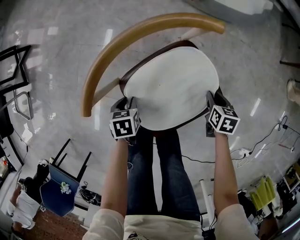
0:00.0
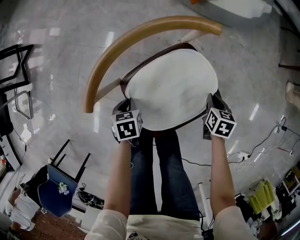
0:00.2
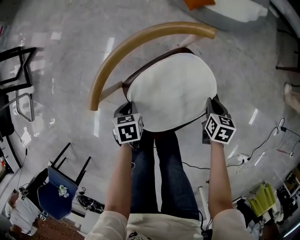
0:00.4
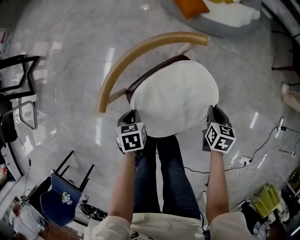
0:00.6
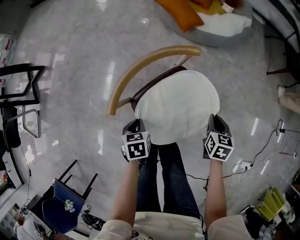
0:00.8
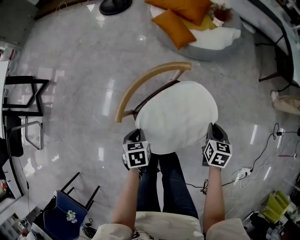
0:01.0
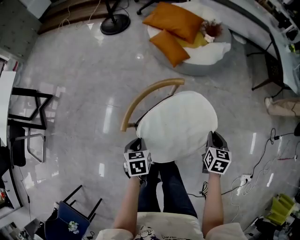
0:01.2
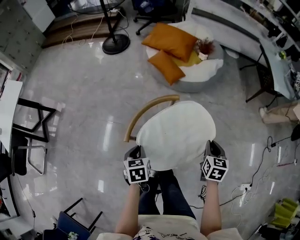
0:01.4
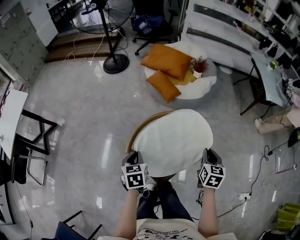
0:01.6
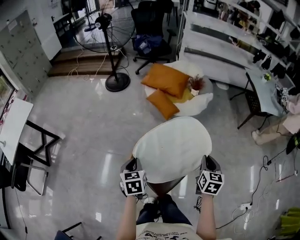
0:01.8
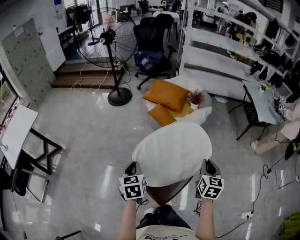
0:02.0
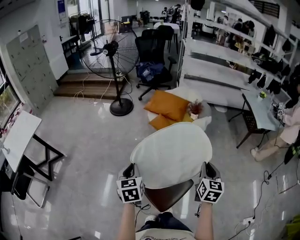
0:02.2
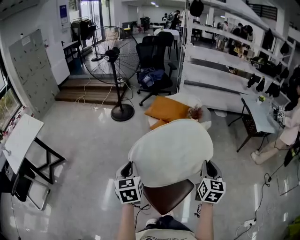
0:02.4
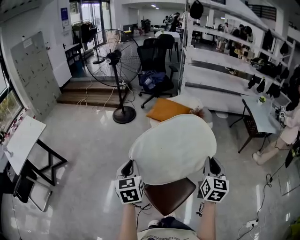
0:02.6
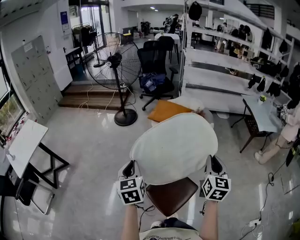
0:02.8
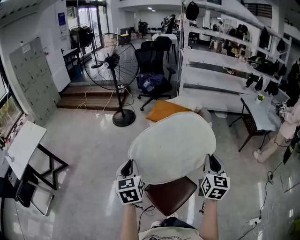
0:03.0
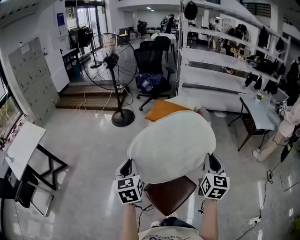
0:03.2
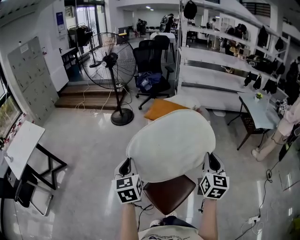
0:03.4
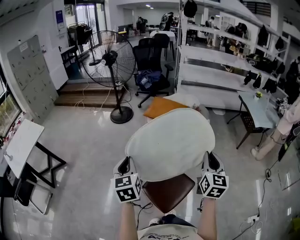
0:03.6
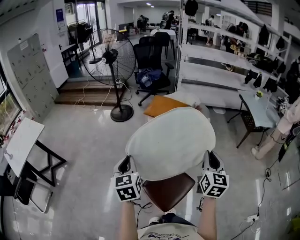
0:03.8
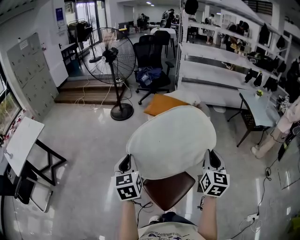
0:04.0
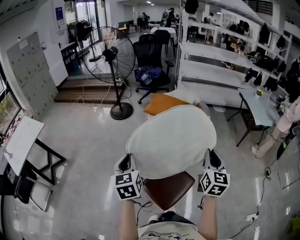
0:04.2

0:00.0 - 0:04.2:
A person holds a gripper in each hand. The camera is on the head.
0:00.0 - 0:01.4: Both grippers move upward, approximately 40 cm. The right gripper changes its angle by roughly 30 degrees. The left gripper turns by approximately 20 degrees, and closes its fingers.
0:01.4 - 0:02.8: Both grippers travel together upward, about 35 cm. The left gripper angles its fingers upward, by approximately 30 degrees. The right gripper points its fingers approximately 40 degrees further upward.
0:02.8 - 0:04.2: Neither gripper changes place.

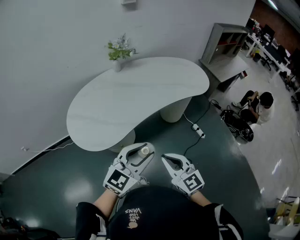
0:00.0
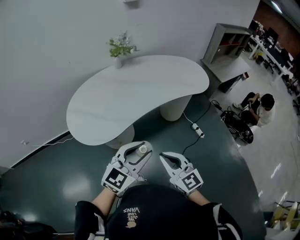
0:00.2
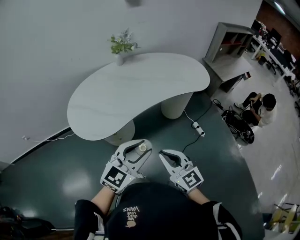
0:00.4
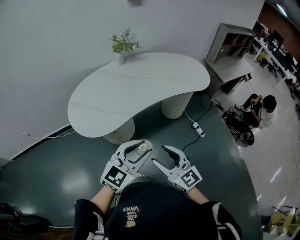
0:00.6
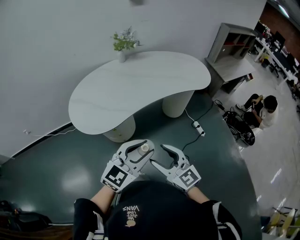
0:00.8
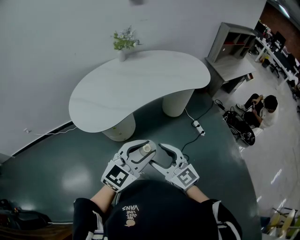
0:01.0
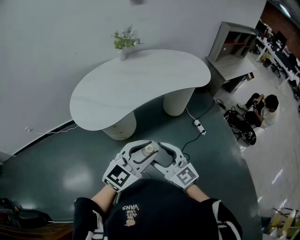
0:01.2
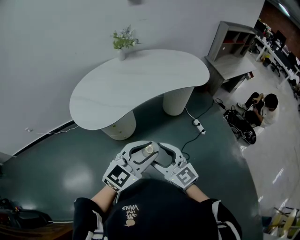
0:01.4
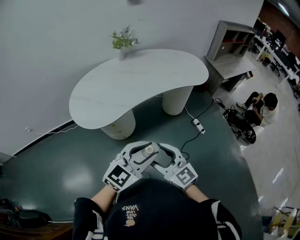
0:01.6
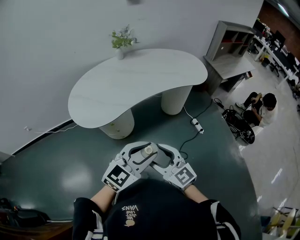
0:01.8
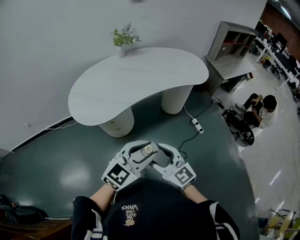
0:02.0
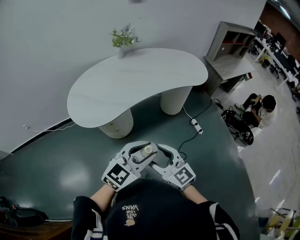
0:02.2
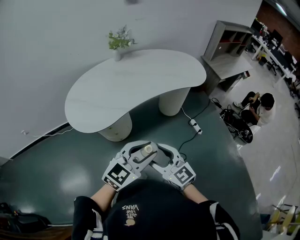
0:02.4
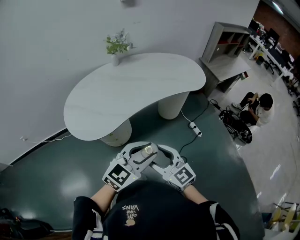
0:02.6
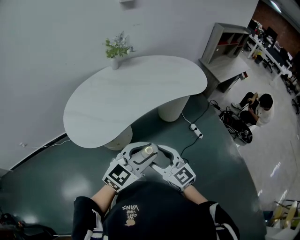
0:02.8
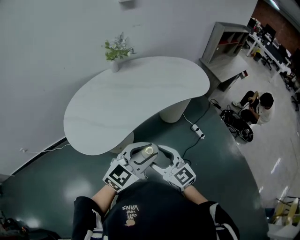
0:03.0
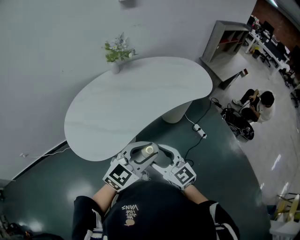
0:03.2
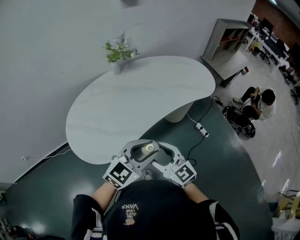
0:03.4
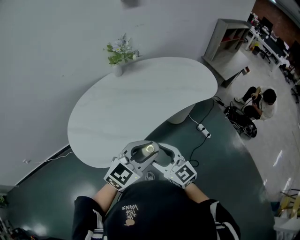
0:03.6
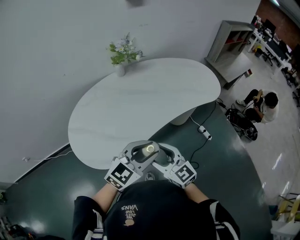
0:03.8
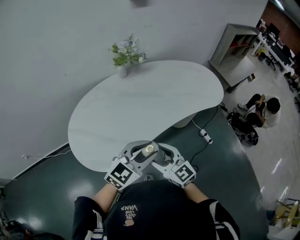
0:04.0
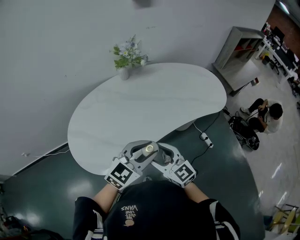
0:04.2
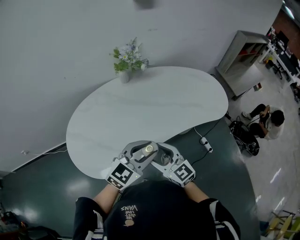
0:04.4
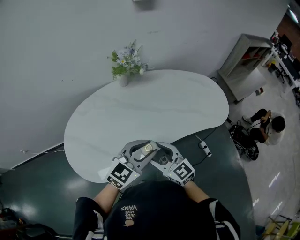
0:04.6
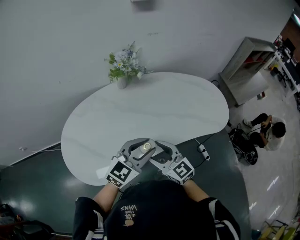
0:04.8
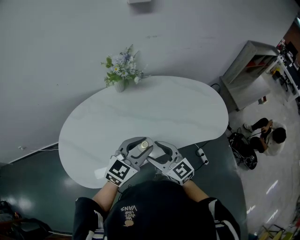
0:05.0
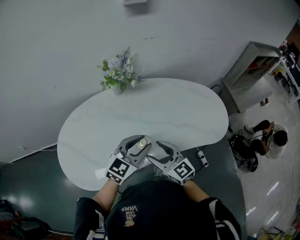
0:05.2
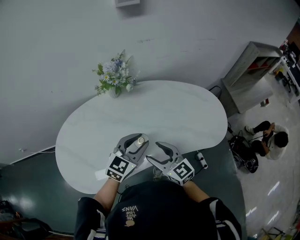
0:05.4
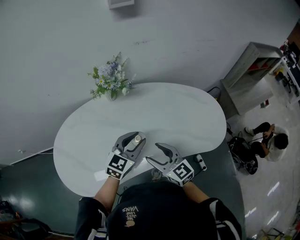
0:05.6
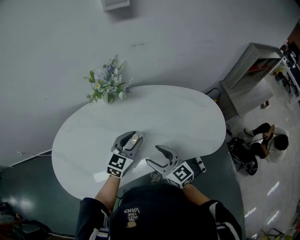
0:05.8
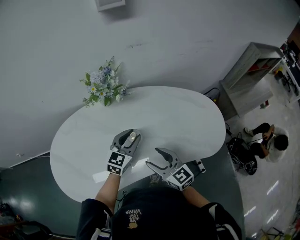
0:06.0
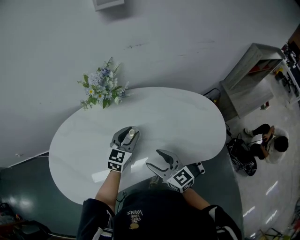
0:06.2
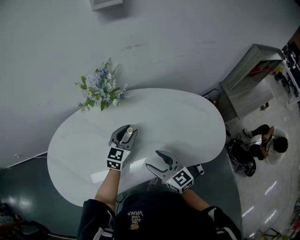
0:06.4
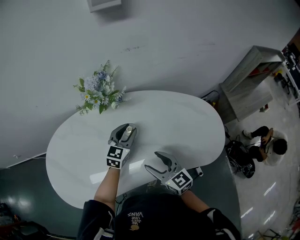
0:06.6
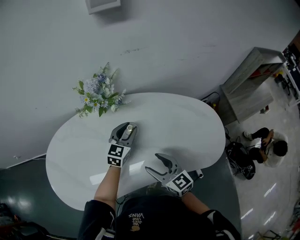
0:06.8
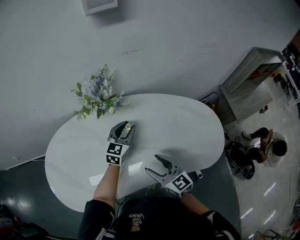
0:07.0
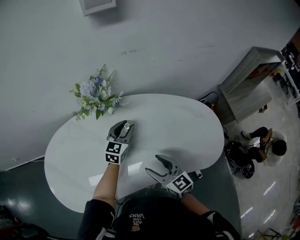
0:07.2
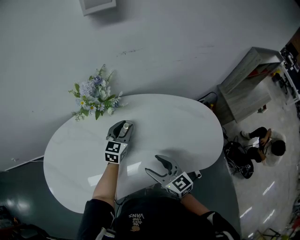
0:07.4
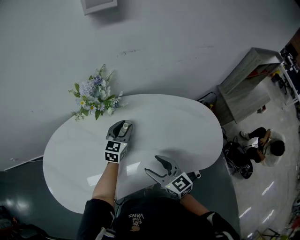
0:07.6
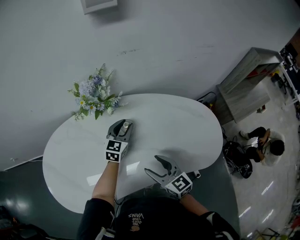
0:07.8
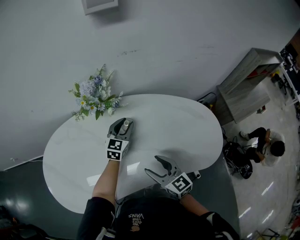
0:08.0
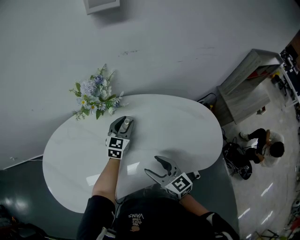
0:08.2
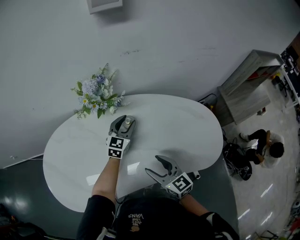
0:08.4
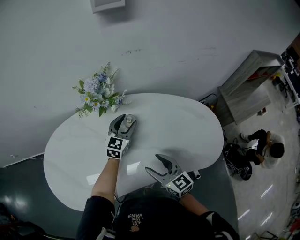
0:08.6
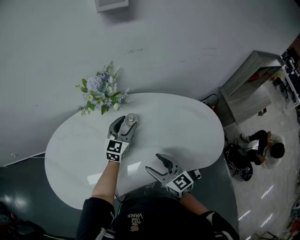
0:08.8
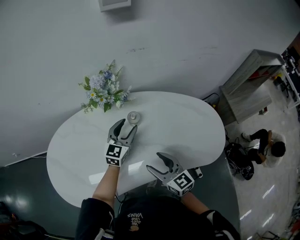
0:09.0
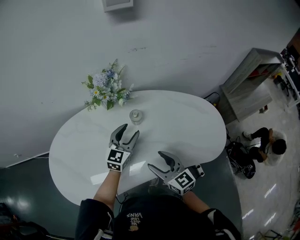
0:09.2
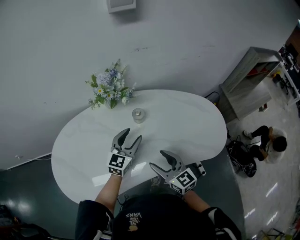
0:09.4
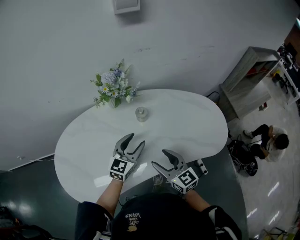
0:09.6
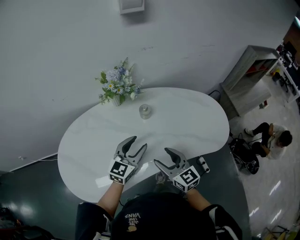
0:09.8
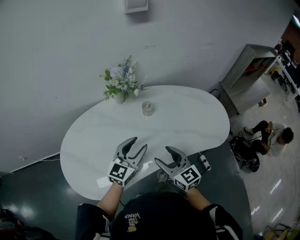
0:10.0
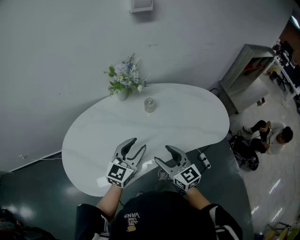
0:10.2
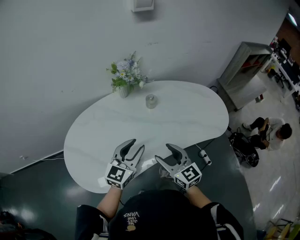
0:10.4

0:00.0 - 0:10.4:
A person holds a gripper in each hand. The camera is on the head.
0:00.0 - 0:01.4: The right gripper shifts approximately 10 cm backward, and opens; the left gripper goes about 15 cm backward and to the right.
0:01.4 - 0:03.0: The grippers both shift forward and to the left by approximately 15 cm.
0:03.0 - 0:04.4: Both grippers travel together forward, about 20 cm.
0:04.4 - 0:06.0: The left gripper travels forward by roughly 30 cm, and swivels about 30 degrees. The right gripper heads forward and to the right, covering about 25 cm.
0:06.0 - 0:07.4: The left gripper goes some 15 cm forward; the right gripper moves about 5 cm.
0:07.4 - 0:09.0: The left gripper ends up approximately 5 cm from where it was.
0:09.0 - 0:10.4: The left gripper moves backward and to the left, roughly 25 cm, while the right gripper travels backward, to the left and upward by some 15 cm.

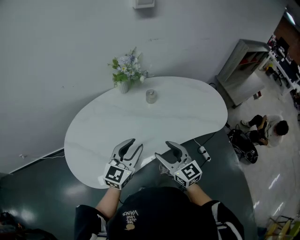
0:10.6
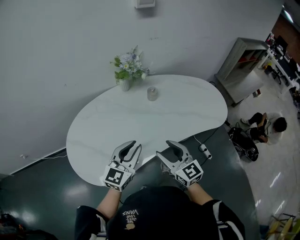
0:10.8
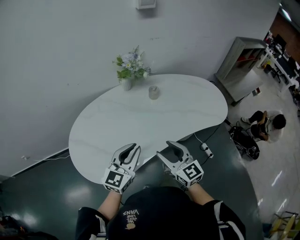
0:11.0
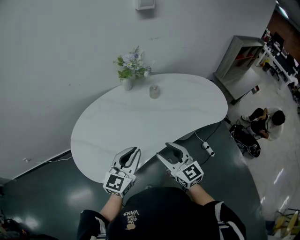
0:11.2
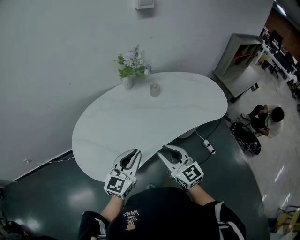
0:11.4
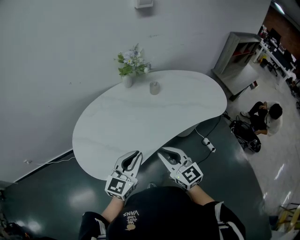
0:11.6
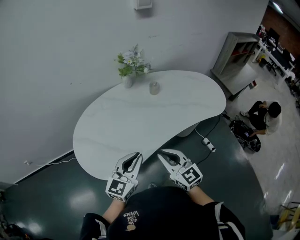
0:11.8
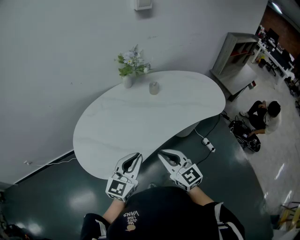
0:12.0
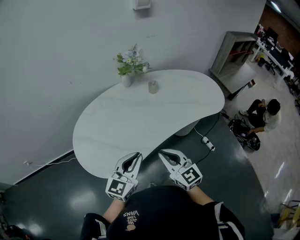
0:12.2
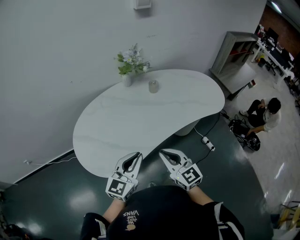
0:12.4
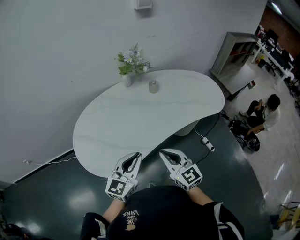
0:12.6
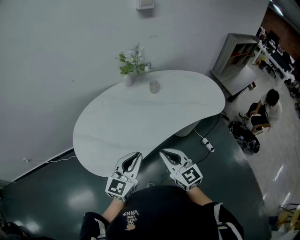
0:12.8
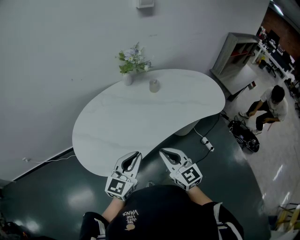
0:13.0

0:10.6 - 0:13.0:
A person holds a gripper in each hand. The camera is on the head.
0:10.6 - 0:11.8: Both grippers move backward and to the left, roughly 15 cm. The right gripper closes its fingers. The left gripper closes up.
0:11.8 - 0:13.0: The grippers stay close to where they were, moving slightly.

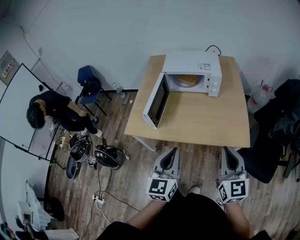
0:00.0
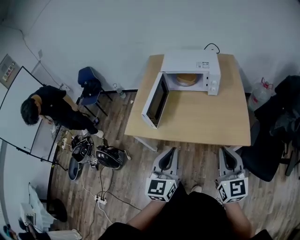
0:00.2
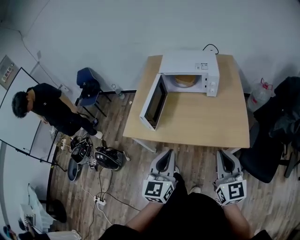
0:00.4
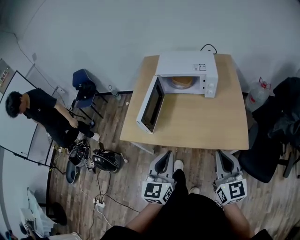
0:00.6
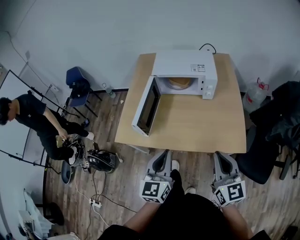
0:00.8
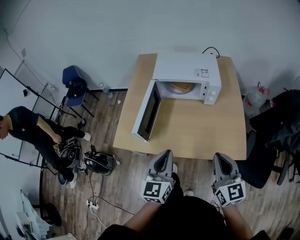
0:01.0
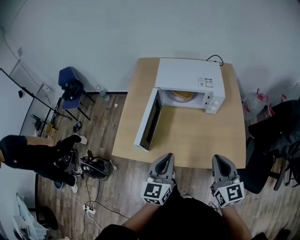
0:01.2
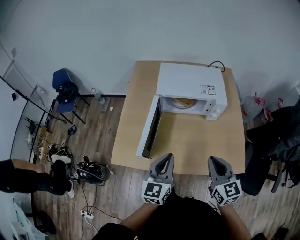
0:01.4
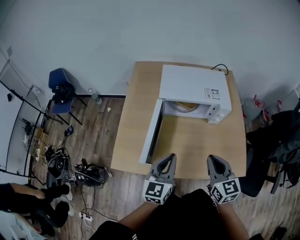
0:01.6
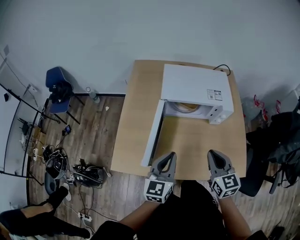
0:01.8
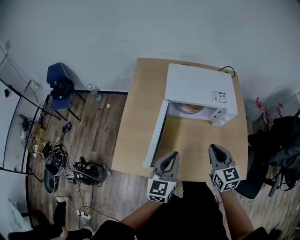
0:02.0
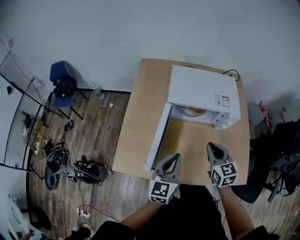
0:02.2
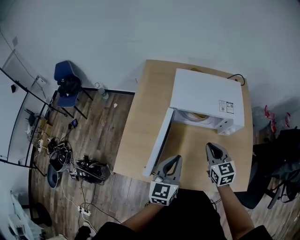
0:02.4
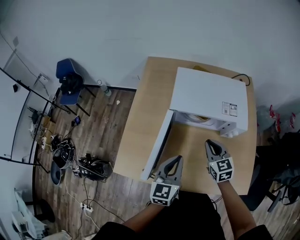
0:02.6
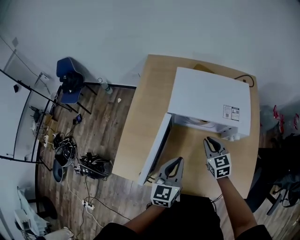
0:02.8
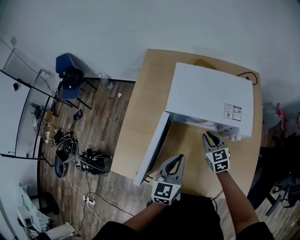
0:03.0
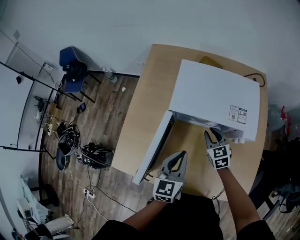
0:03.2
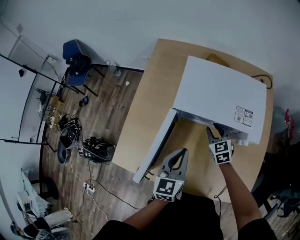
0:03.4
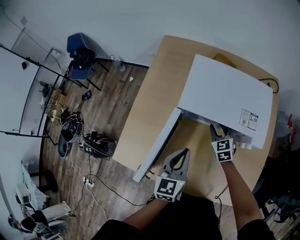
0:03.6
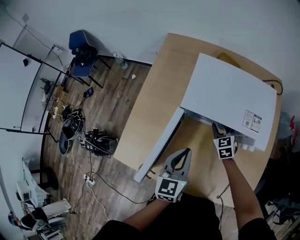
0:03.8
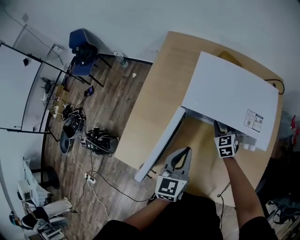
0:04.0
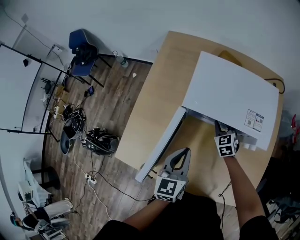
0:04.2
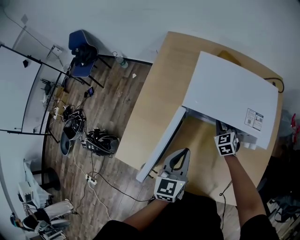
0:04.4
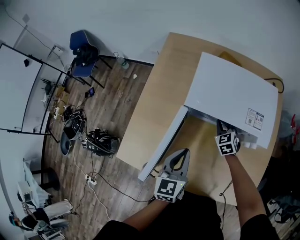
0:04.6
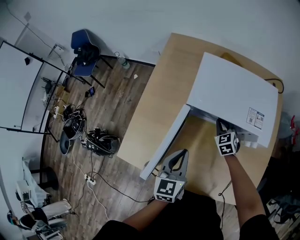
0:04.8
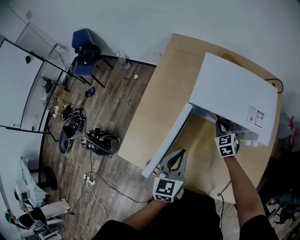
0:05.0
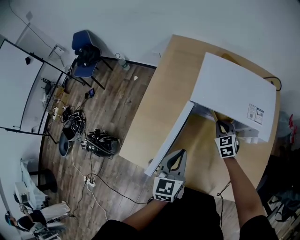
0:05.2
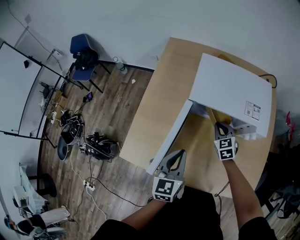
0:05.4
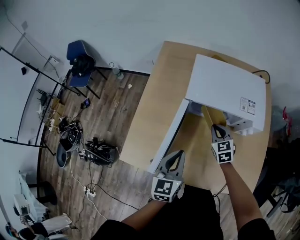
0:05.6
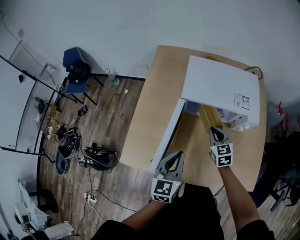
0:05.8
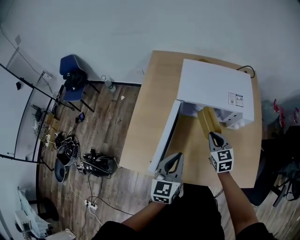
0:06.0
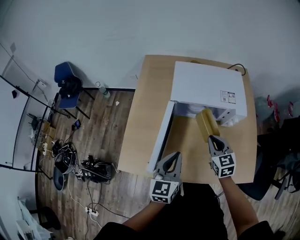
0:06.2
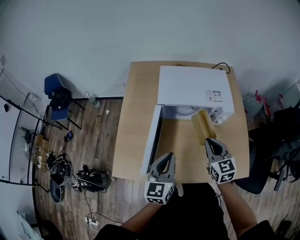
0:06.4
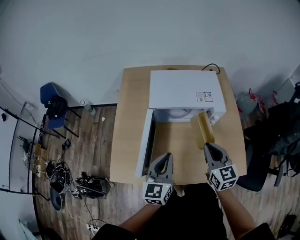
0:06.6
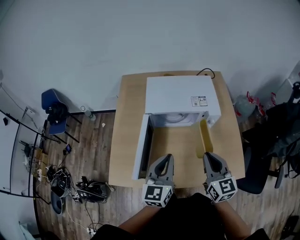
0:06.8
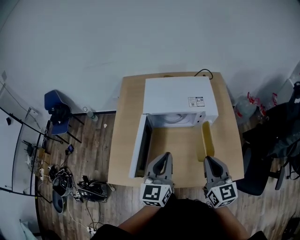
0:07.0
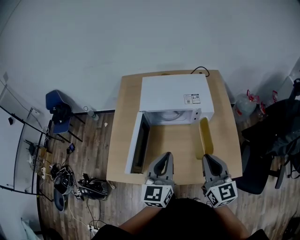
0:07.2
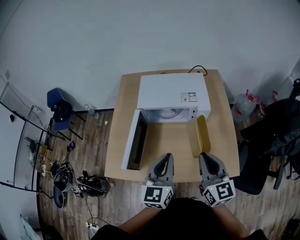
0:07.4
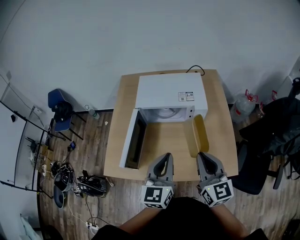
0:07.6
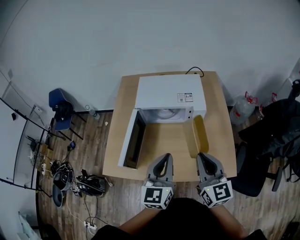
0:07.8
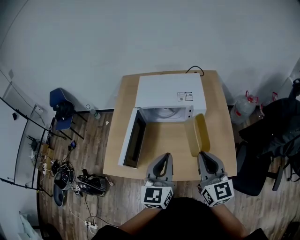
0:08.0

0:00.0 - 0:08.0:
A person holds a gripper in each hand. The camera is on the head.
0:00.0 - 0:01.6: The grippers both shift forward by some 25 cm.
0:01.6 - 0:03.2: The right gripper goes some 35 cm forward and downward, and turns by about 30 degrees; the left gripper heads forward and downward, covering about 15 cm.
0:03.2 - 0:04.8: The left gripper ends up about 5 cm from where it was, while the right gripper is displaced downward and forward by about 10 cm.
0:04.8 - 0:06.4: The right gripper heads backward and upward, covering approximately 30 cm, and swivels some 30 degrees. Meanwhile the left gripper travels backward and upward by approximately 10 cm.
0:06.4 - 0:08.0: The right gripper heads backward, upward and to the right, covering roughly 20 cm. The left gripper shifts some 15 cm to the right, upward and backward.
